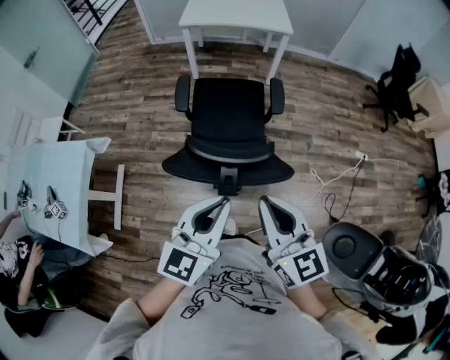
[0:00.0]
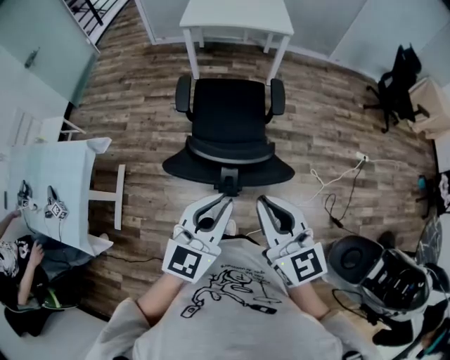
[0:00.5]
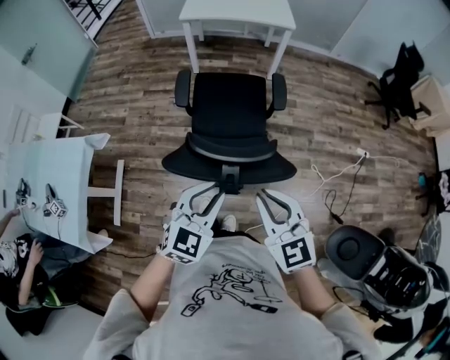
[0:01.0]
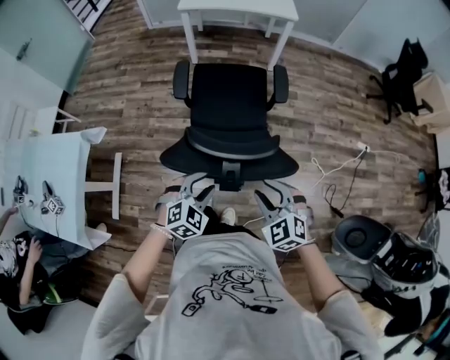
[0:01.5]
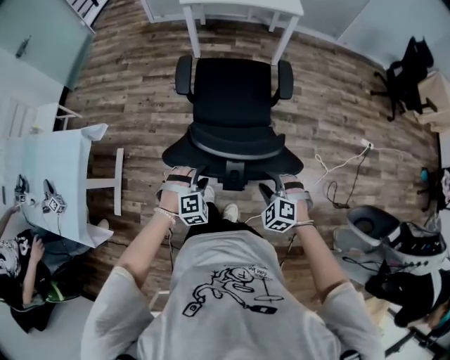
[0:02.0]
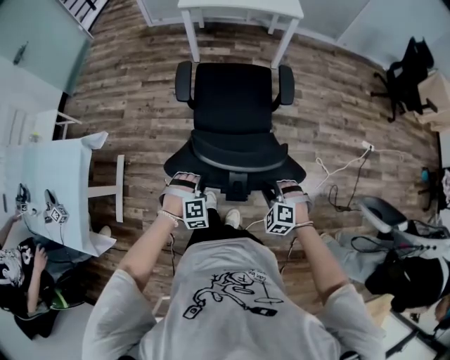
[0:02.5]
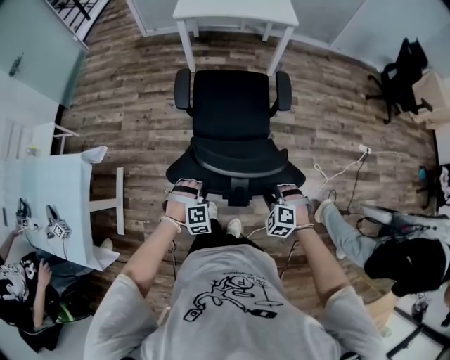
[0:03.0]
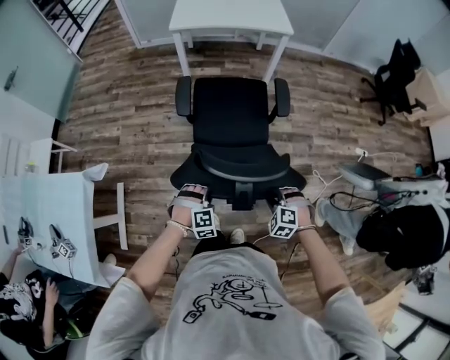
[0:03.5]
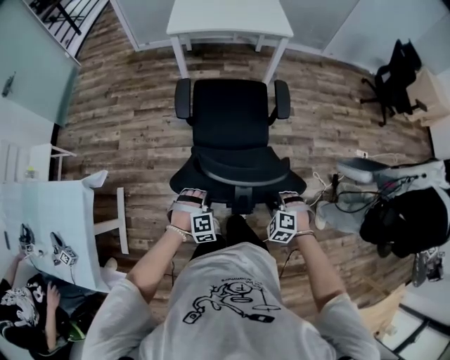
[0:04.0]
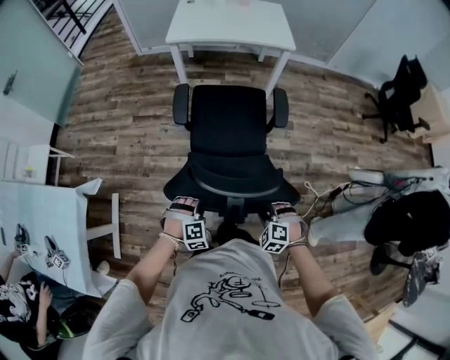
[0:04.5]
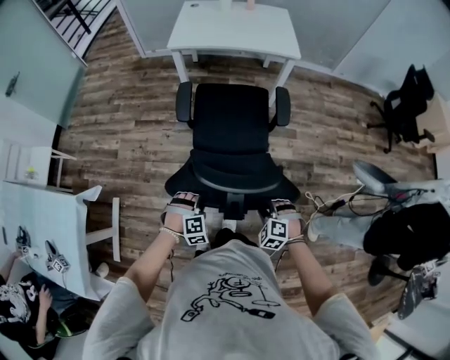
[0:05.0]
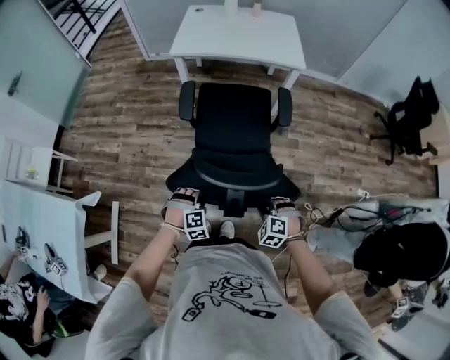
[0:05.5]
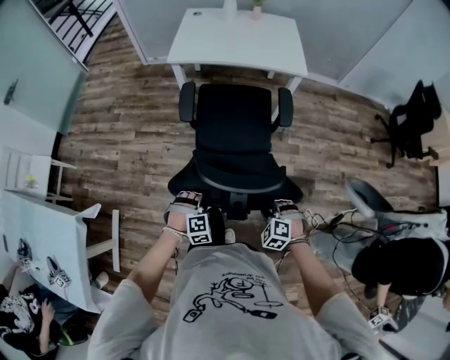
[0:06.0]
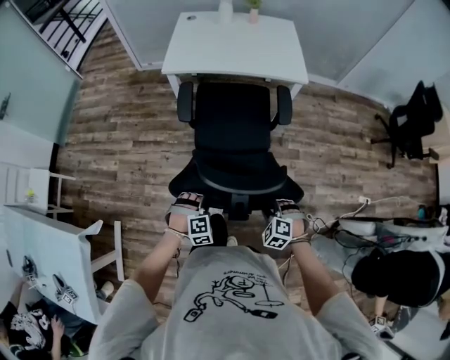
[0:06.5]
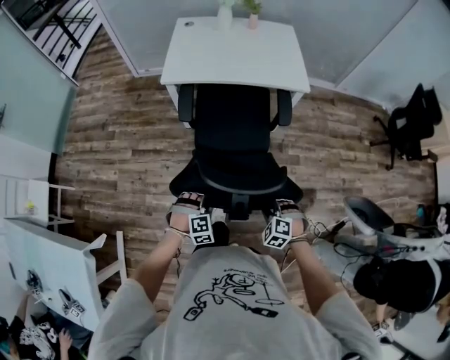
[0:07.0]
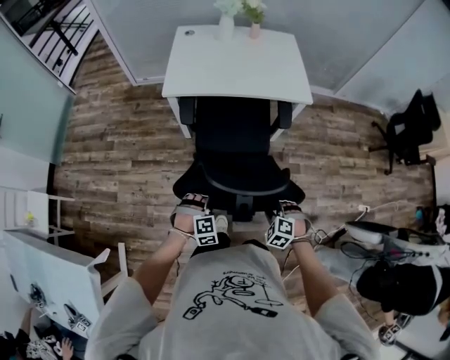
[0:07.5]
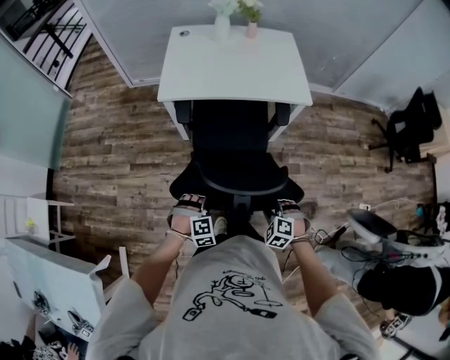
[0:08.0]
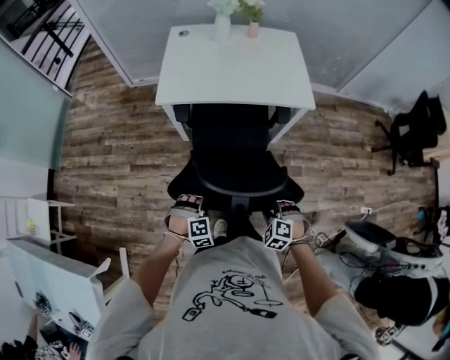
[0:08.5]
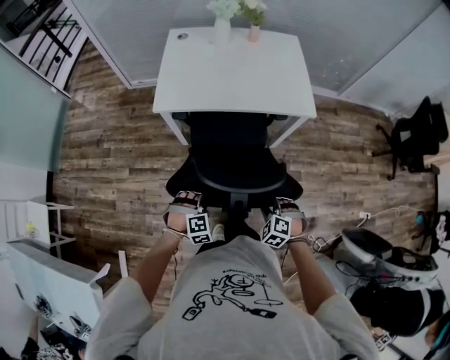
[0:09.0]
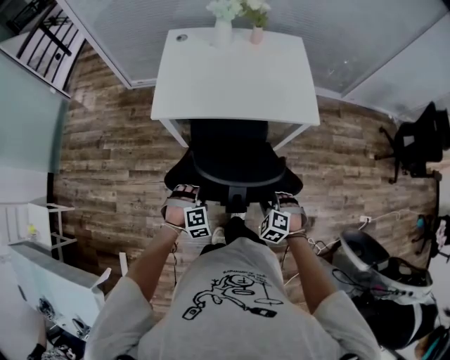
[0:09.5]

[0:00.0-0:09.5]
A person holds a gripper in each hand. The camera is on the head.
0:00.0 to 0:02.0: The grippers both shift downward by about 30 cm. The left gripper tilts its fingers about 50 degrees downward, and opens; the right gripper tips its fingers downward by approximately 50 degrees, and opens.
0:02.0 to 0:04.0: Both grippers move forward, roughly 10 cm. The left gripper closes.
0:04.0 to 0:05.5: Both grippers travel together forward, roughly 20 cm.
0:05.5 to 0:07.5: Both grippers move forward, approximately 25 cm.
0:07.5 to 0:09.5: The two grippers go about 20 cm forward.

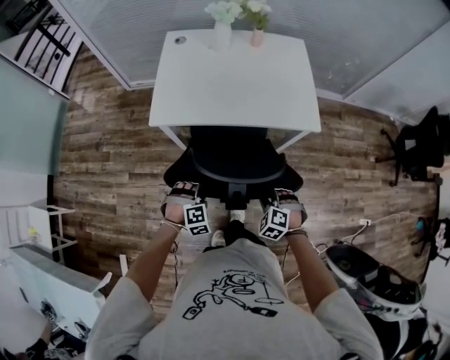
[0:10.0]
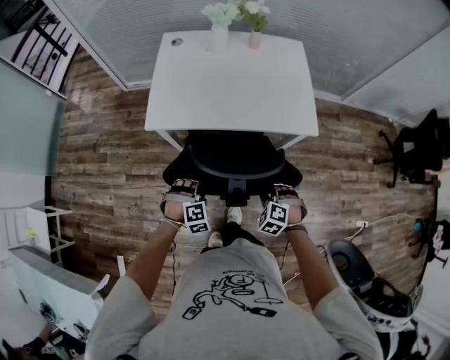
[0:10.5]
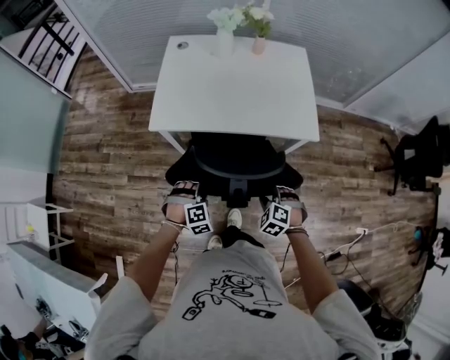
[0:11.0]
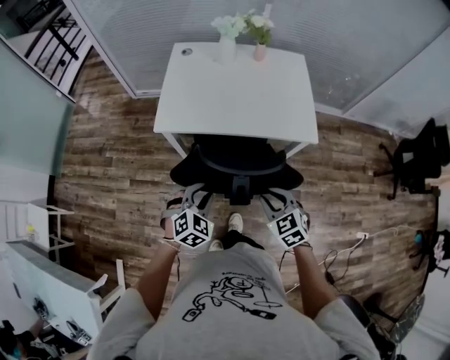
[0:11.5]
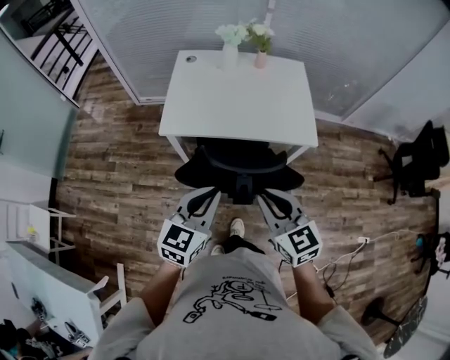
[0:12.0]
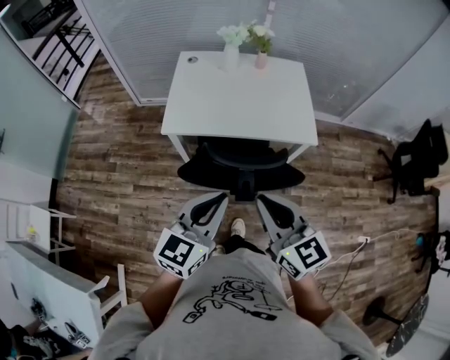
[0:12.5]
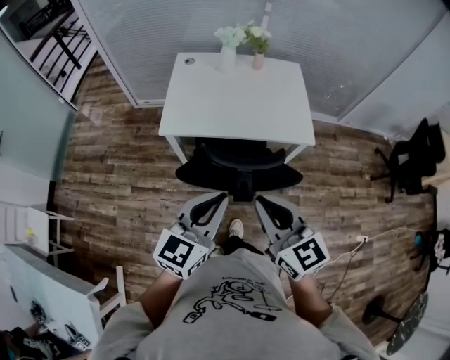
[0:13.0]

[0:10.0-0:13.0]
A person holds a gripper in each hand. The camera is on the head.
0:10.0 to 0:11.5: The two grippers go some 10 cm upward. The left gripper changes its angle by roughly 40 degrees; the right gripper rotates roughly 40 degrees.
0:11.5 to 0:13.0: Both grippers travel together upward, approximately 20 cm. The right gripper angles its fingers upward, by some 30 degrees, while the left gripper points its fingers approximately 40 degrees further upward, and closes up.

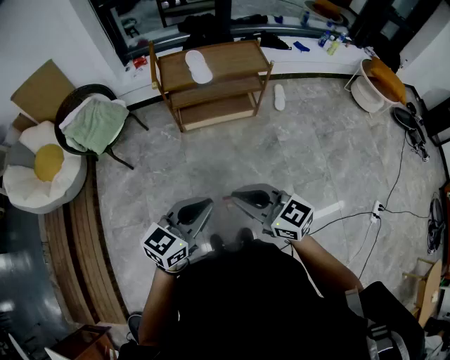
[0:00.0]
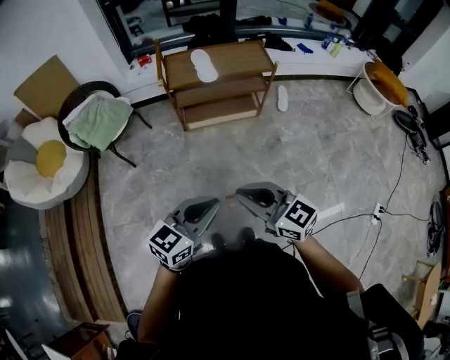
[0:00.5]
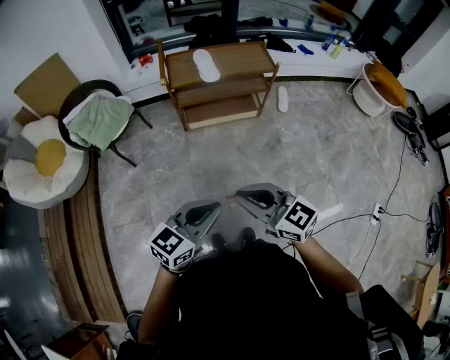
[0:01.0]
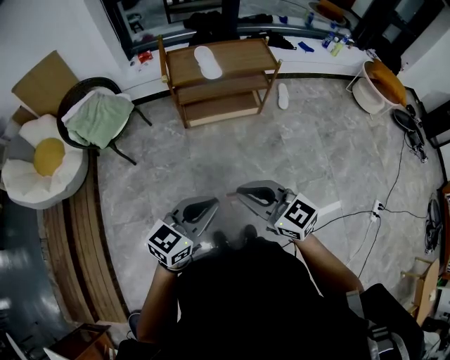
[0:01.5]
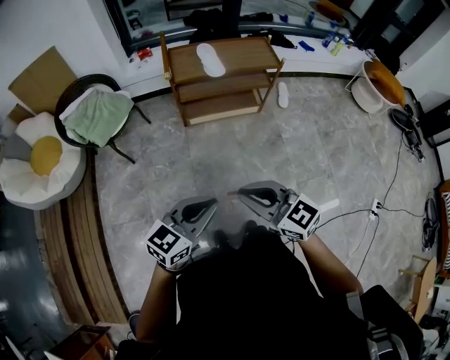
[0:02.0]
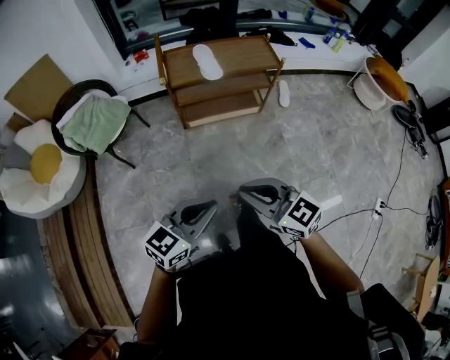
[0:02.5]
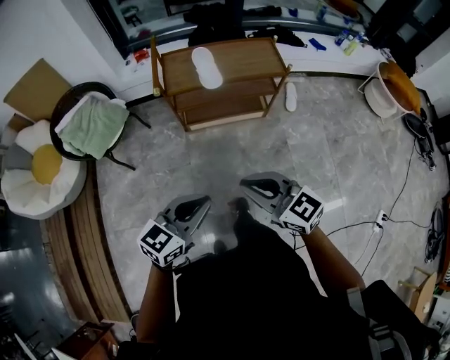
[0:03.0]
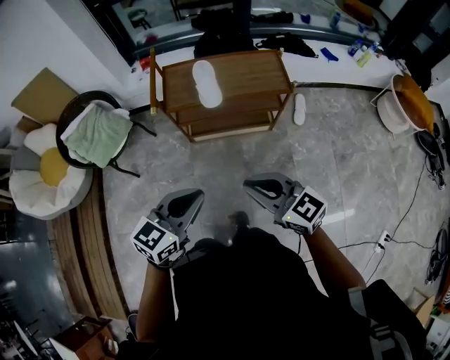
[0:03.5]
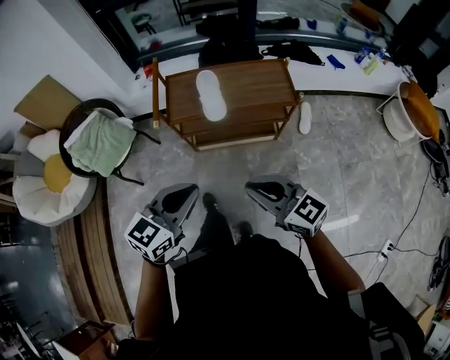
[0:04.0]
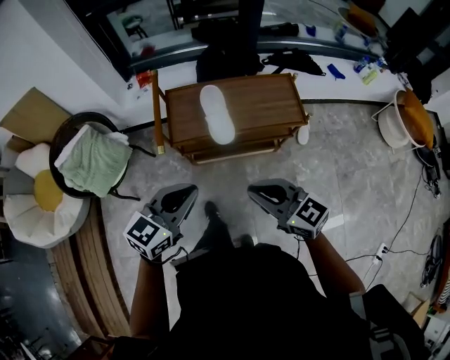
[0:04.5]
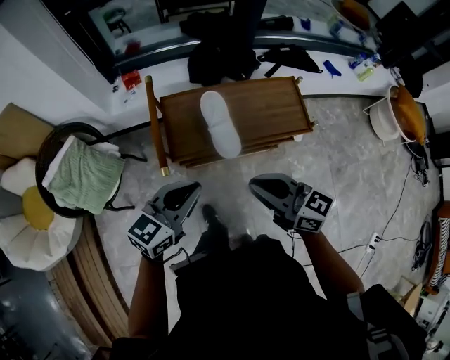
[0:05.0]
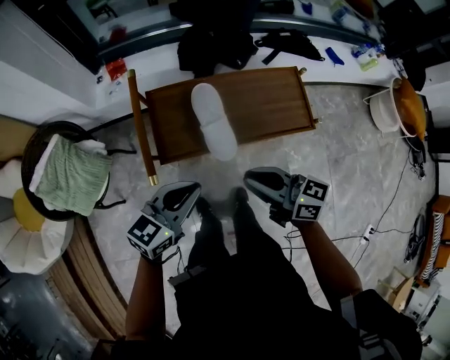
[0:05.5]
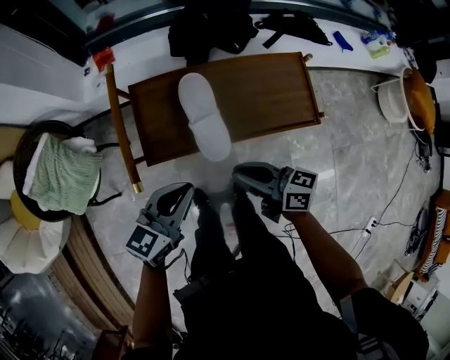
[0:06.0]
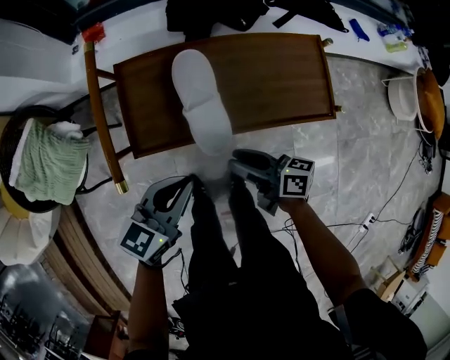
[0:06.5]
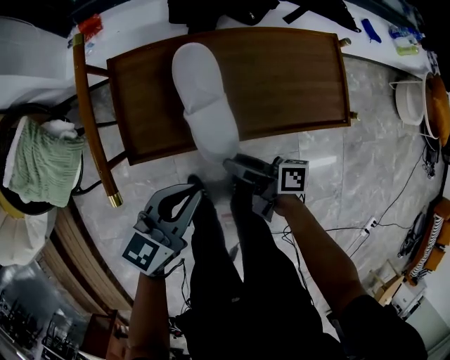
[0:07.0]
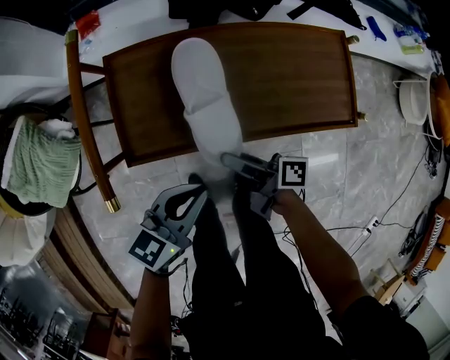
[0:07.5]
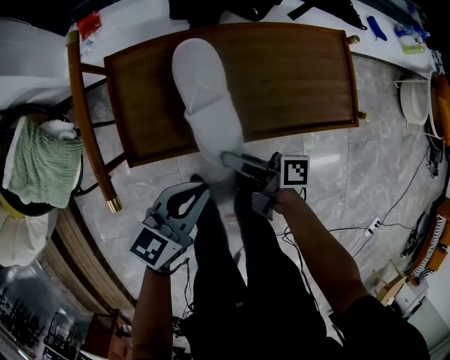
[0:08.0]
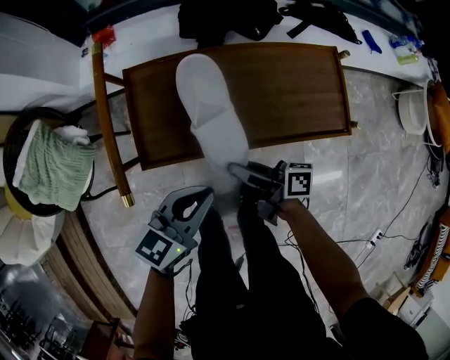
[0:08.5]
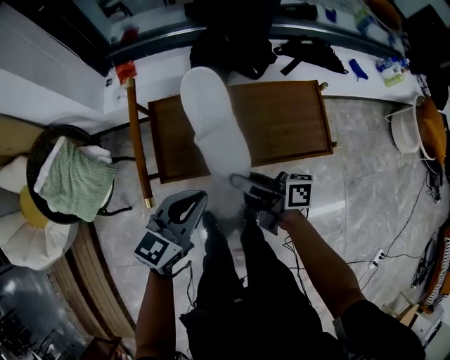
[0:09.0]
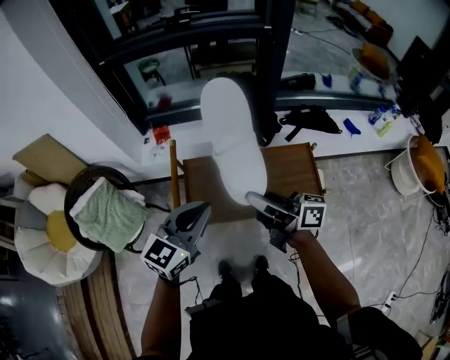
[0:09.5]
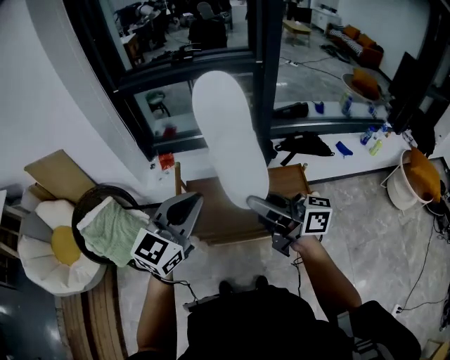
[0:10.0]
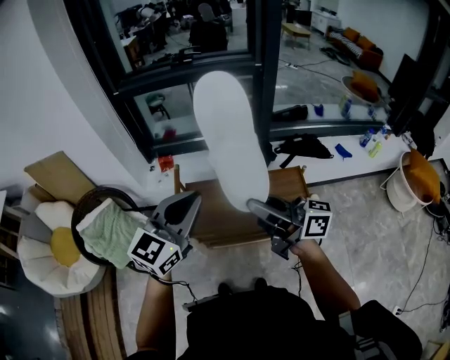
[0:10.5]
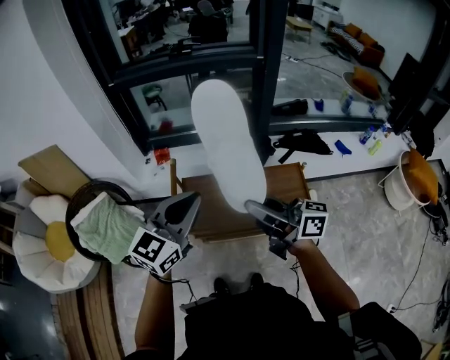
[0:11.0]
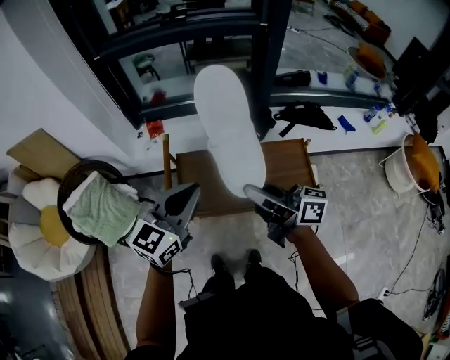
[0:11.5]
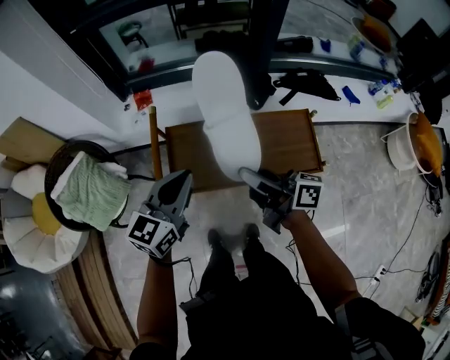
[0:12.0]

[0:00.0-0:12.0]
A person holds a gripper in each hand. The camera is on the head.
0:00.0 to 0:02.0: The grippers both shift to the left by some 5 cm.
0:02.0 to 0:04.0: The right gripper goes roughly 35 cm forward and to the right; the left gripper travels forward by some 35 cm.
0:04.0 to 0:06.0: The two grippers go about 35 cm forward and downward. The right gripper turns by roughly 40 degrees.
0:06.0 to 0:08.0: The grippers both shift downward by some 15 cm. The right gripper changes its angle by some 40 degrees, and opens, then closes again.
0:08.0 to 0:10.0: The grippers both shift upward by roughly 50 cm. The left gripper rotates roughly 40 degrees. The right gripper twists some 50 degrees counterclockwise, seen from behind.
0:10.0 to 0:12.0: Both grippers travel together downward, some 20 cm. The left gripper changes its angle by approximately 20 degrees. The right gripper rotates about 20 degrees.

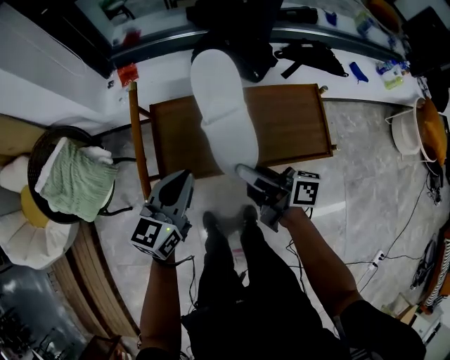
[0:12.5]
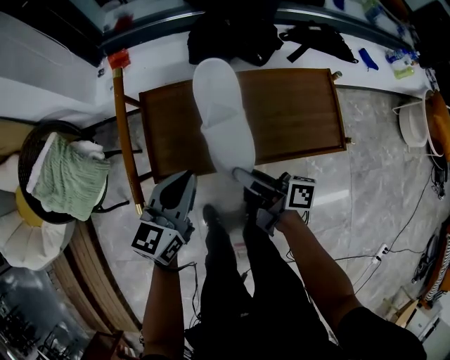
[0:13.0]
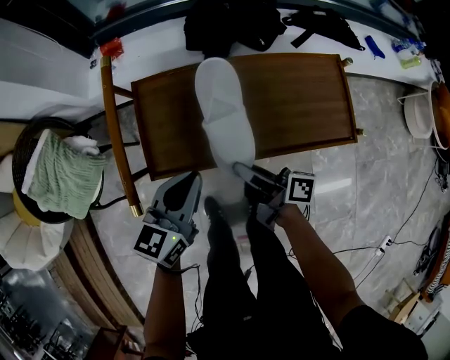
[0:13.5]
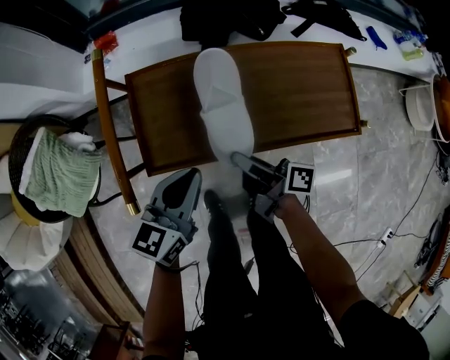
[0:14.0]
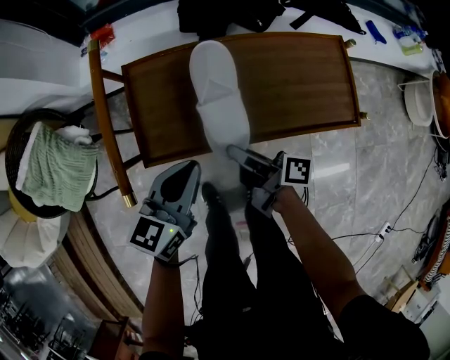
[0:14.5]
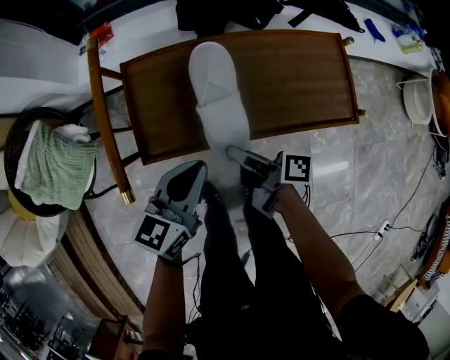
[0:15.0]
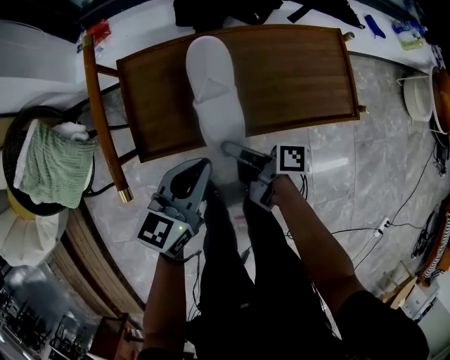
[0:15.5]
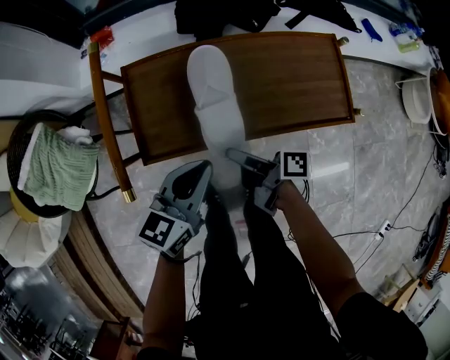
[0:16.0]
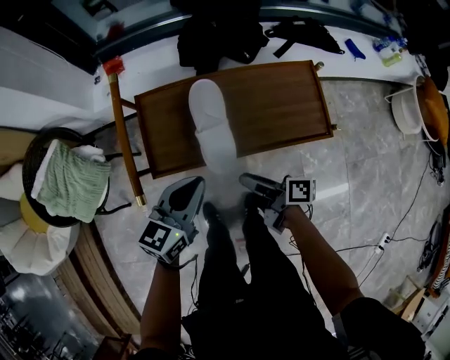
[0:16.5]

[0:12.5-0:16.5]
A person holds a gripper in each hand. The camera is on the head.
0:12.5 to 0:14.5: The left gripper is displaced downward by approximately 10 cm. The right gripper travels downward by roughly 20 cm.
0:14.5 to 0:16.5: The left gripper goes some 5 cm upward; the right gripper heads backward and upward, covering some 10 cm.
